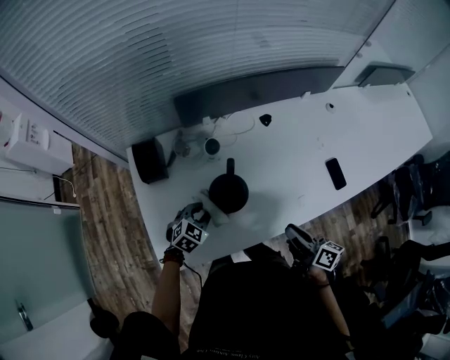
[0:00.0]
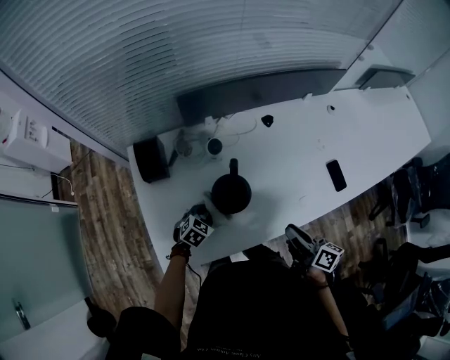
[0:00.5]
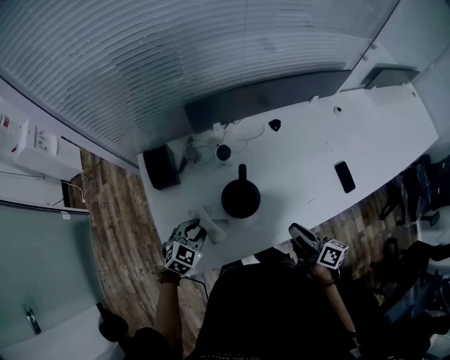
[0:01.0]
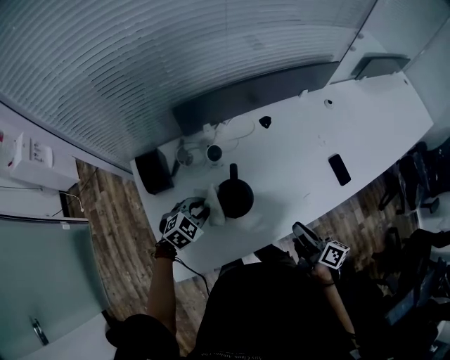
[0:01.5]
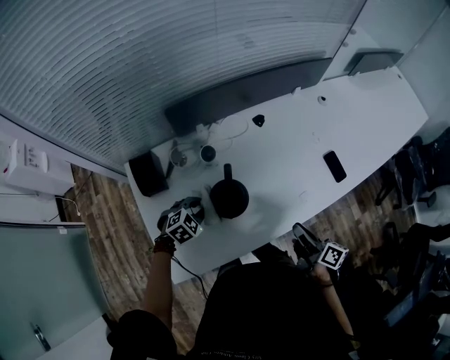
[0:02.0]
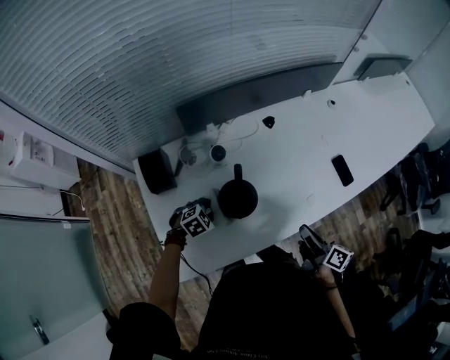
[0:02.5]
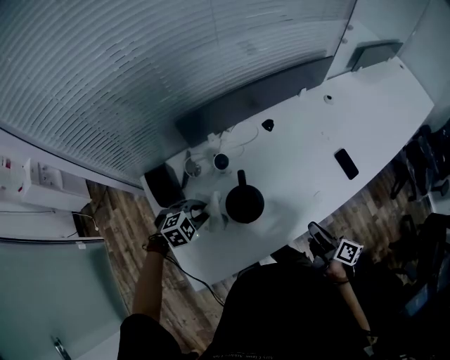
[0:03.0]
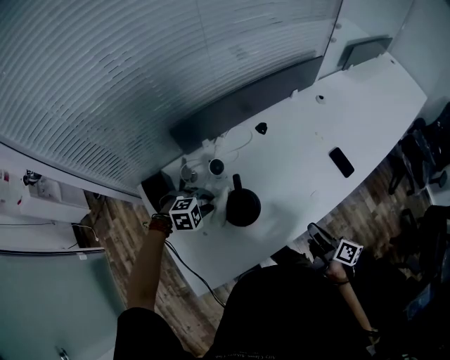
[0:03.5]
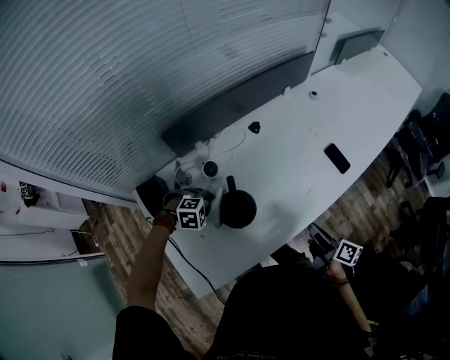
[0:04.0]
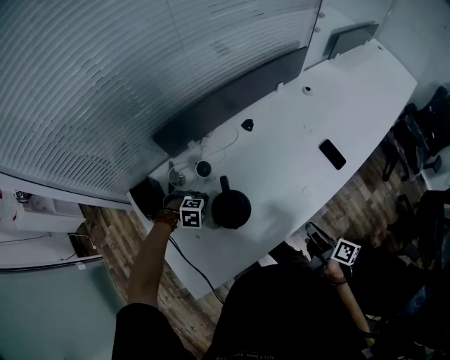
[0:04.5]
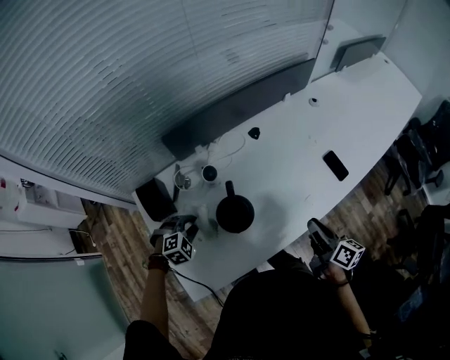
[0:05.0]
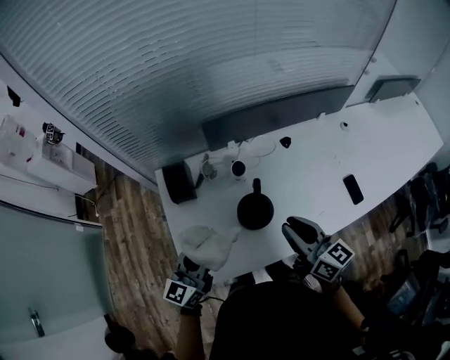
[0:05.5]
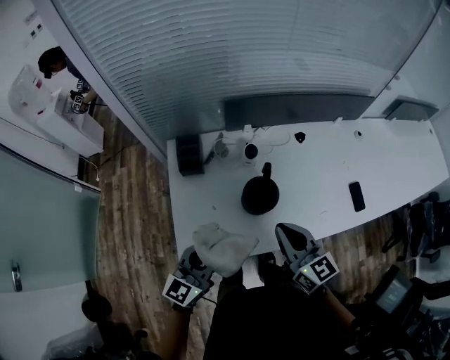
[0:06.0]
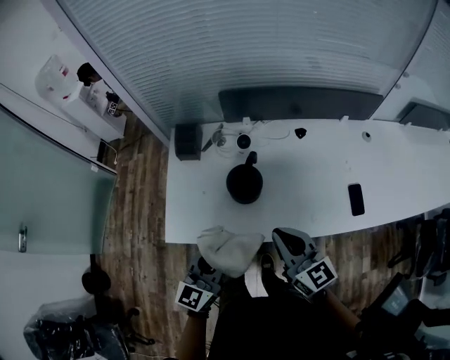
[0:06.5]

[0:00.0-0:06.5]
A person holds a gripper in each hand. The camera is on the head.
0:00.0 to 0:02.0: The left gripper goes up and down, about 10 cm each way, reversing 2 times, and swivels about 20 degrees.
0:02.0 to 0:04.5: The left gripper swings up and down, about 10 cm each way, with 2 reversals, and turns by approximately 50 degrees.
0:04.5 to 0:06.5: The right gripper travels upward by approximately 15 cm, twists about 60 degrees counterclockwise, seen from behind, and closes up; the left gripper shifts approximately 25 cm upward, and points its fingers some 70 degrees further upward.

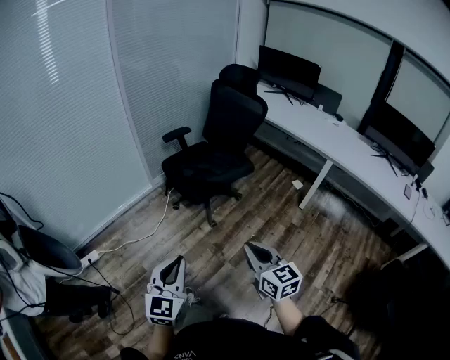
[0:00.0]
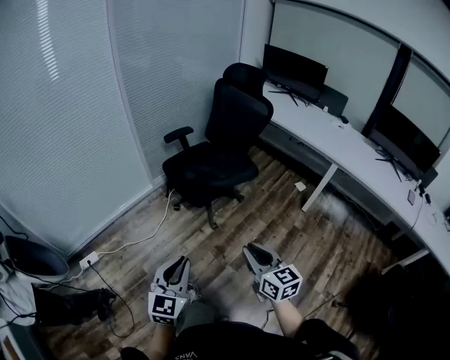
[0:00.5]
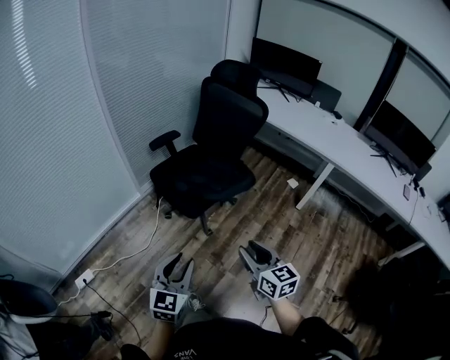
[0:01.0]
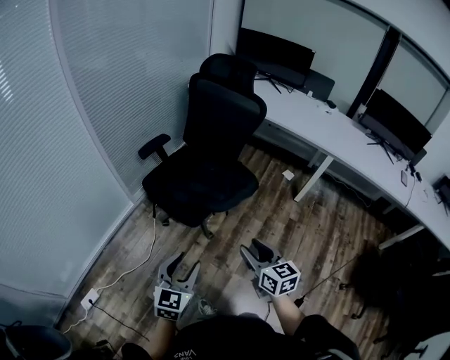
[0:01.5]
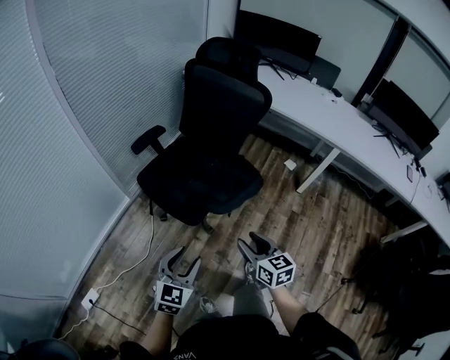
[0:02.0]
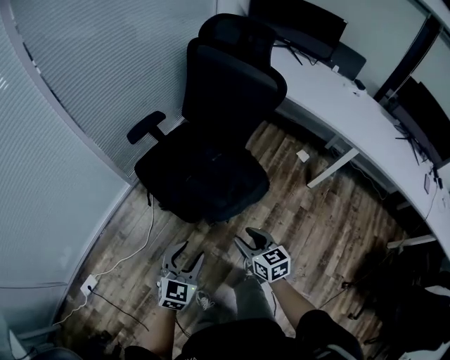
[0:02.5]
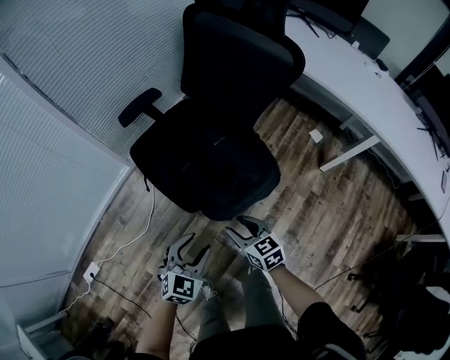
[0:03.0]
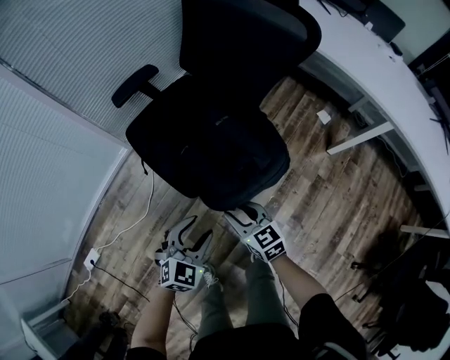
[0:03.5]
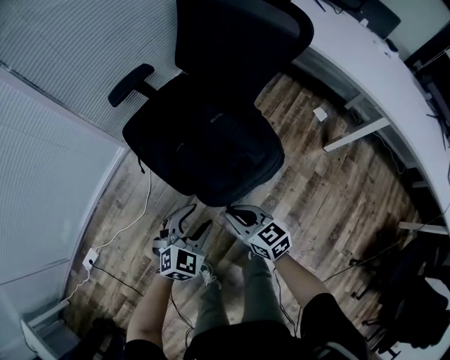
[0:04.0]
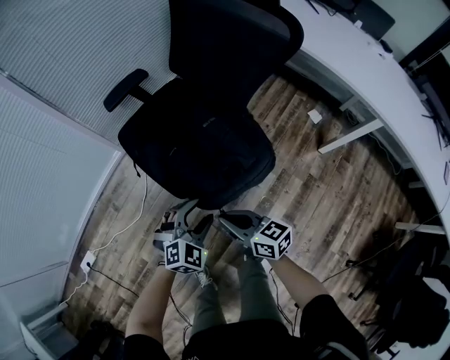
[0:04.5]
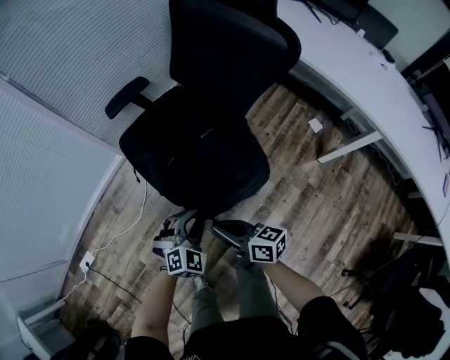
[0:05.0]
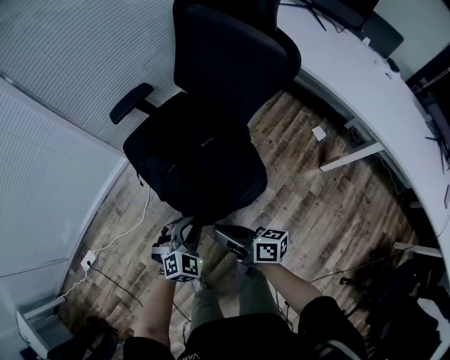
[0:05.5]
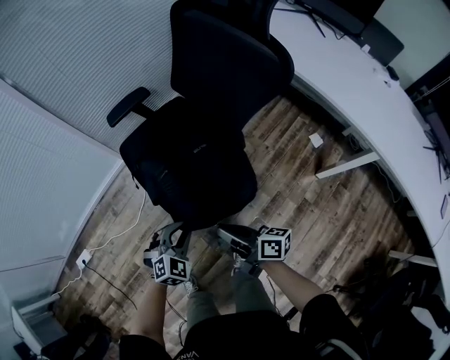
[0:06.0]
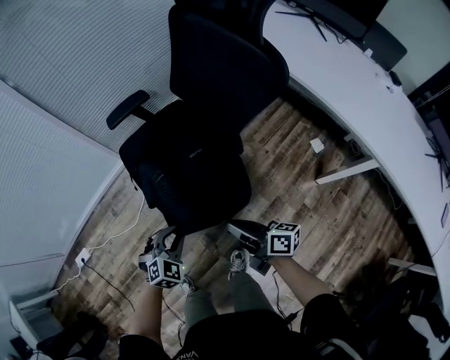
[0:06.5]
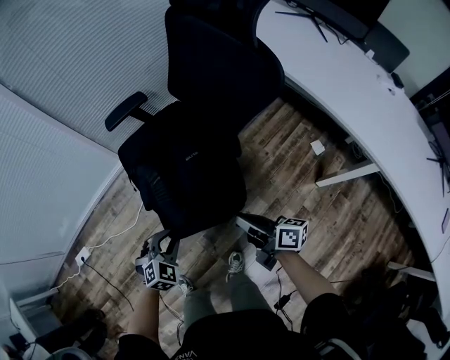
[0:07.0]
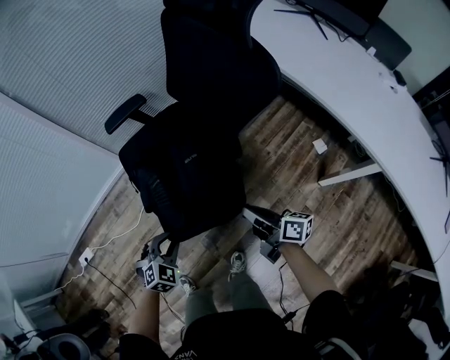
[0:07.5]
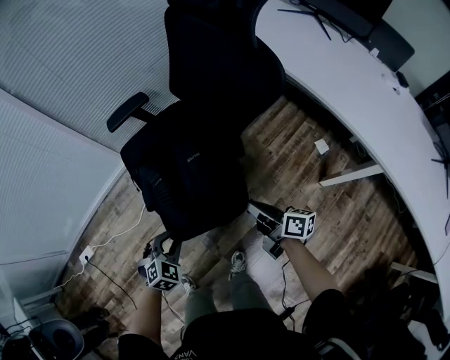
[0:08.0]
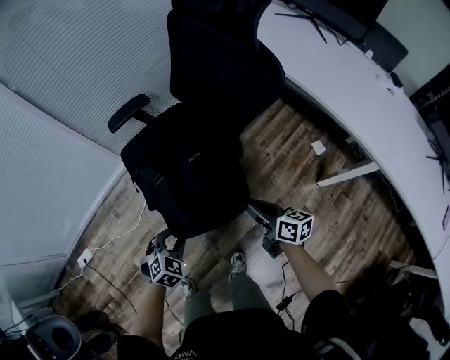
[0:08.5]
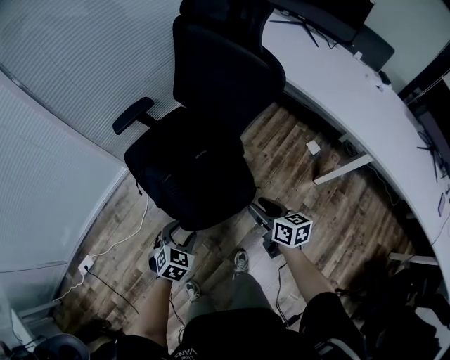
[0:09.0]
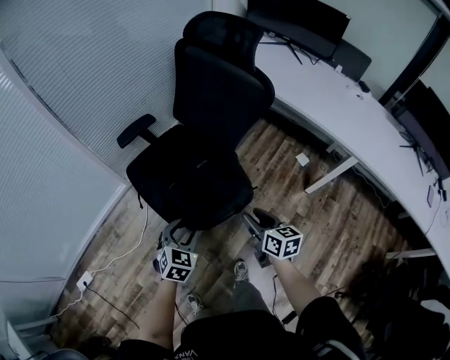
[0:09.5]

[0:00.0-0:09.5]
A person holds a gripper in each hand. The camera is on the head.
0:00.0 to 0:02.0: Both grippers move forward, roughly 40 cm. The left gripper swivels approximately 30 degrees, and opens. The right gripper changes its angle by approximately 20 degrees, and opens.
0:02.0 to 0:04.0: The left gripper heads downward, forward and to the right, covering about 30 cm, and turns by some 20 degrees, while the right gripper is displaced downward and forward by roughly 25 cm, changes its angle by approximately 30 degrees, and closes.
0:04.0 to 0:05.5: The right gripper moves upward, about 5 cm, and swivels roughly 40 degrees. Meanwhile the left gripper travels to the right by approximately 5 cm, and closes its fingers.
0:05.5 to 0:07.5: The right gripper moves to the right, some 20 cm.
0:07.5 to 0:09.5: The right gripper shifts roughly 10 cm backward, to the left and upward, swivels about 40 degrees, and opens up. The left gripper is displaced upward by some 10 cm, and opens its fingers.

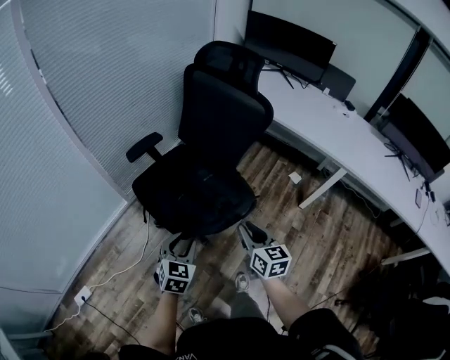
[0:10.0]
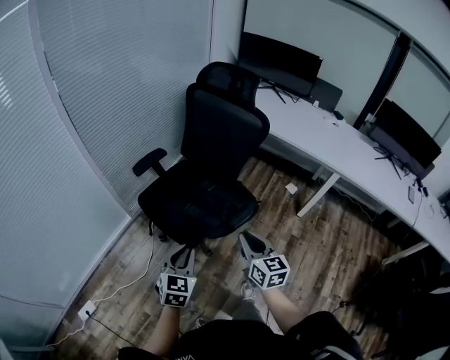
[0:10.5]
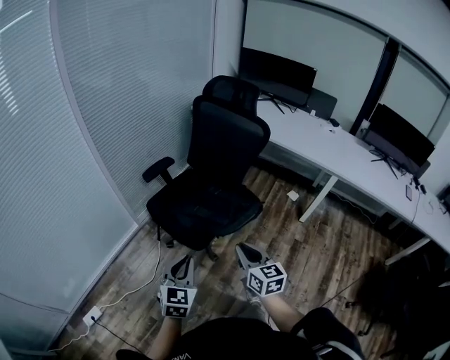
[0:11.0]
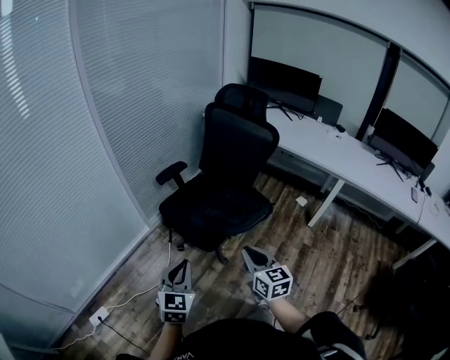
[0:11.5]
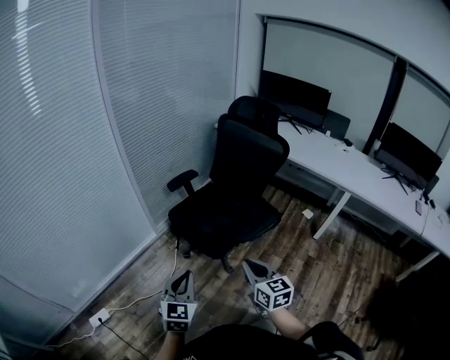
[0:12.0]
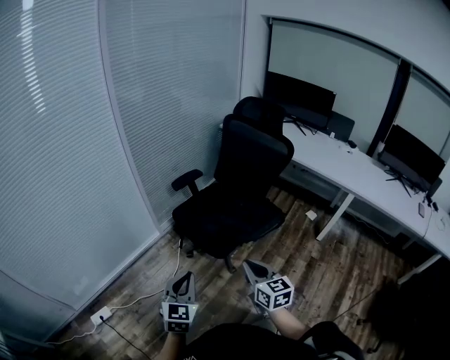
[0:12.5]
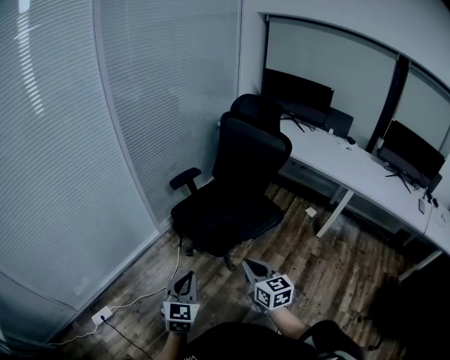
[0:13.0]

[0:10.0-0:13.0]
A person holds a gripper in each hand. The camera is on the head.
0:10.0 to 0:11.5: Both grippers travel together backward, to the left and upward, roughly 25 cm. The left gripper closes.
0:11.5 to 0:13.0: The right gripper heads to the left, covering approximately 5 cm, while the left gripper moves roughly 5 cm.

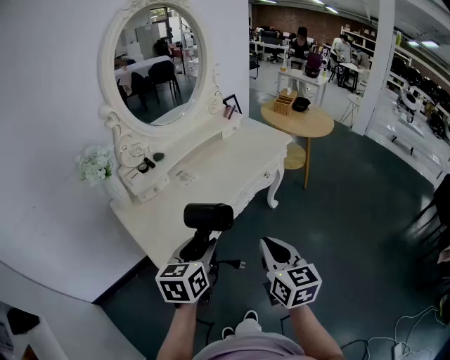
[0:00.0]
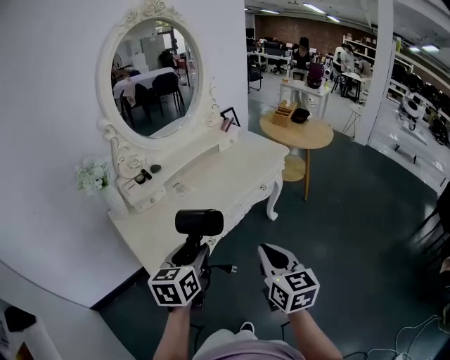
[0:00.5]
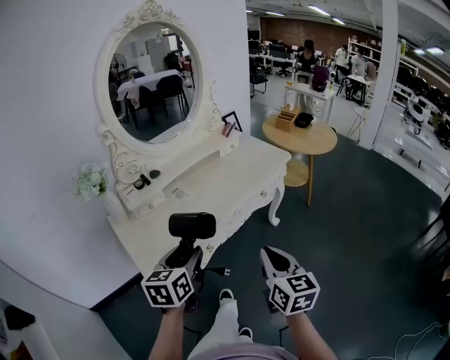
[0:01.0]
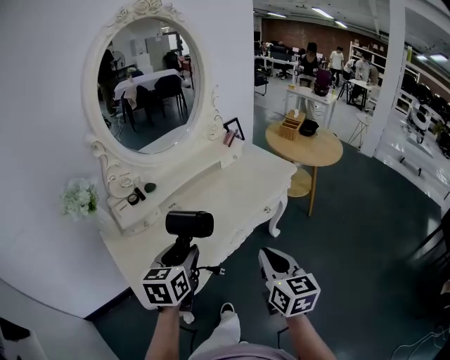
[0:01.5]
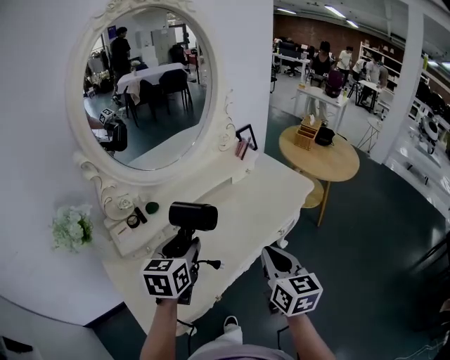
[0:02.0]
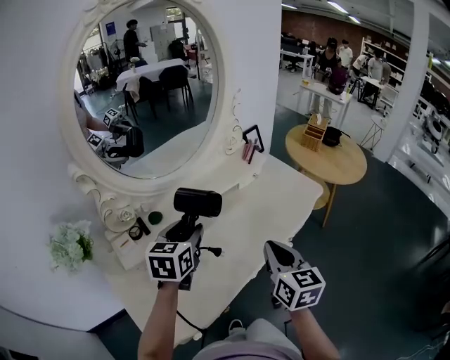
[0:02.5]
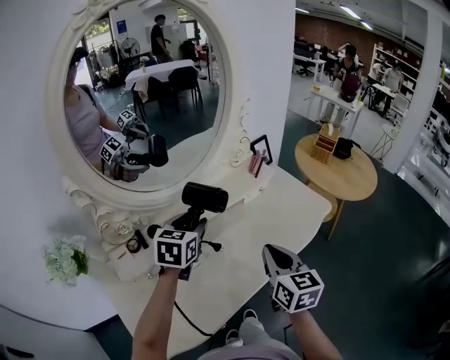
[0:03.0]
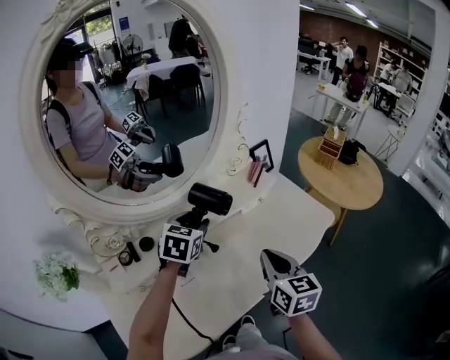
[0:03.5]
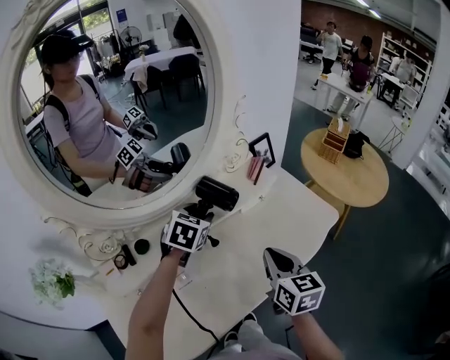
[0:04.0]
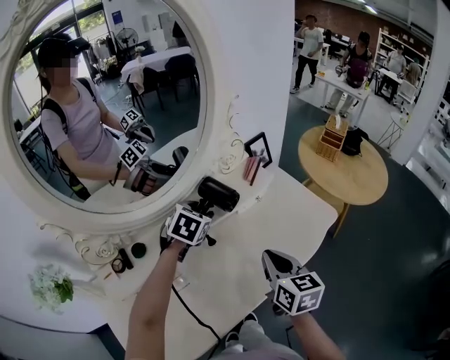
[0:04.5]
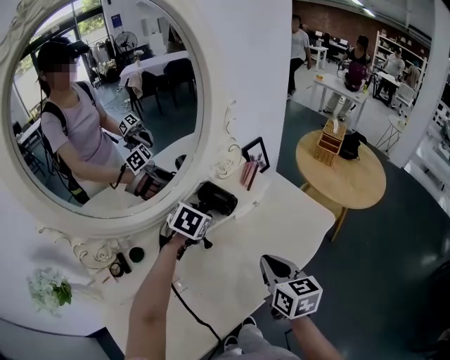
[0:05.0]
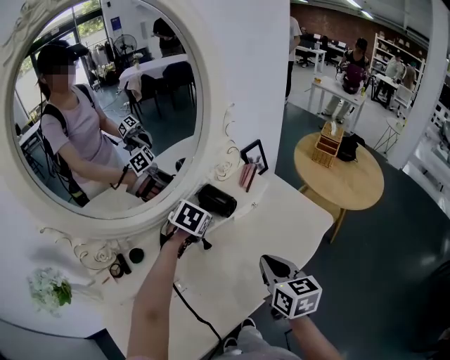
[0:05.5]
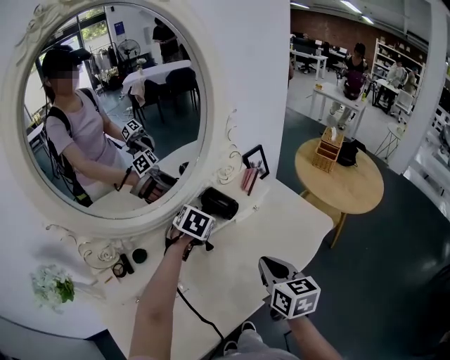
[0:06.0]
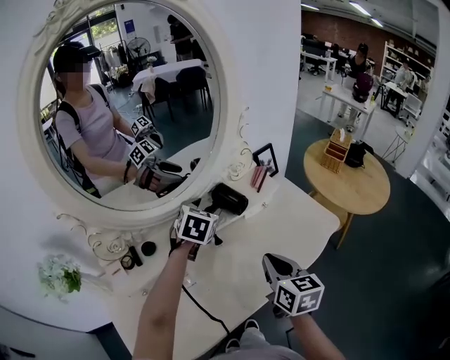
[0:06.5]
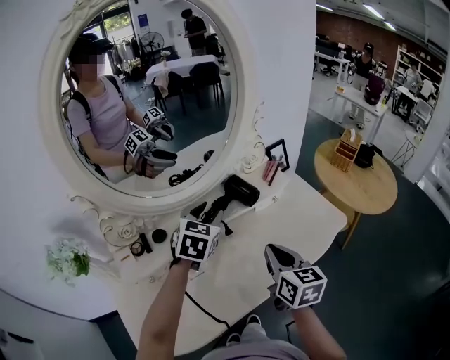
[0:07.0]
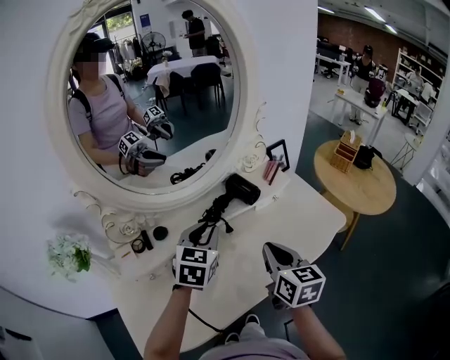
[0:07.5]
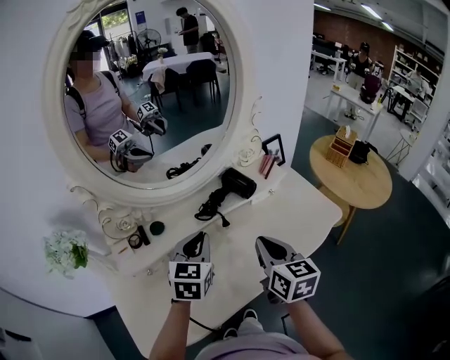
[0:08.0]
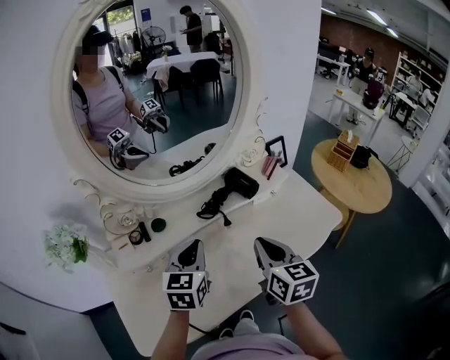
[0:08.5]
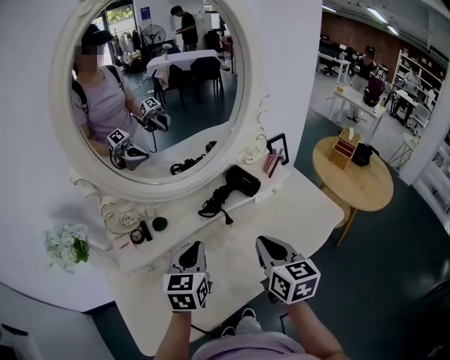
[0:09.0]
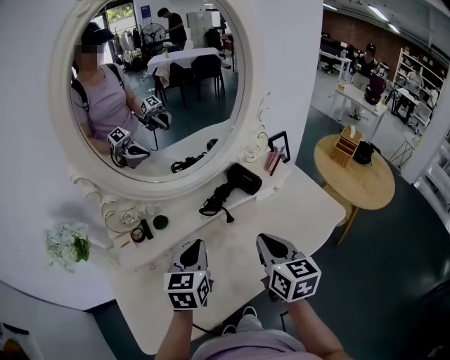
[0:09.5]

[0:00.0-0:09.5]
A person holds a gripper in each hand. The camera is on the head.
0:00.0 to 0:02.0: Both grippers travel together forward, some 30 cm.
0:02.0 to 0:04.0: Both grippers travel together forward, approximately 25 cm. The left gripper rotates approximately 30 degrees.
0:04.0 to 0:05.5: The left gripper shifts by approximately 5 cm.
0:05.5 to 0:07.5: The right gripper is displaced to the left by approximately 5 cm. The left gripper heads backward and upward, covering about 15 cm, points its fingers approximately 30 degrees further upward, and closes.
0:07.5 to 0:09.5: The left gripper is displaced backward by some 5 cm.
